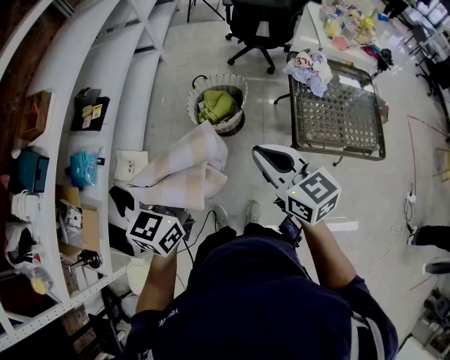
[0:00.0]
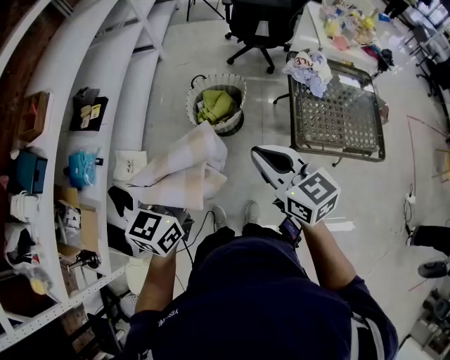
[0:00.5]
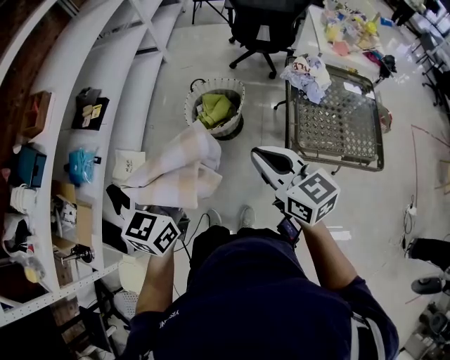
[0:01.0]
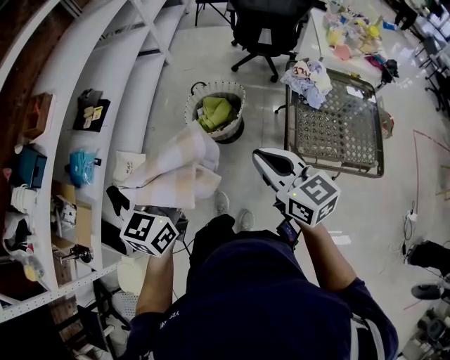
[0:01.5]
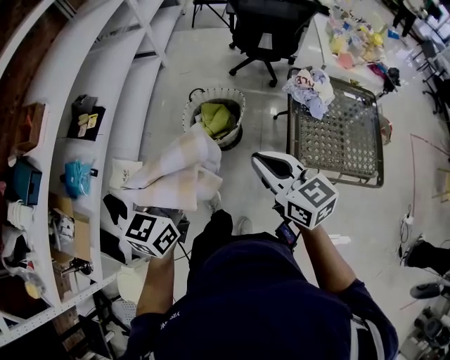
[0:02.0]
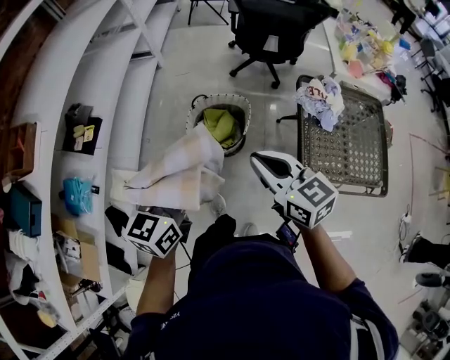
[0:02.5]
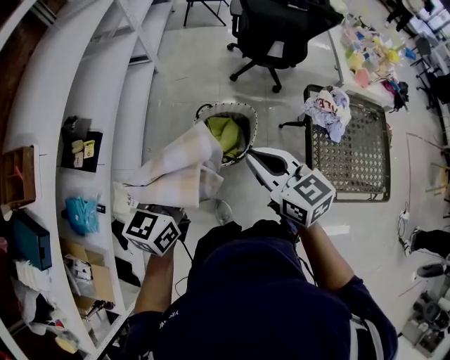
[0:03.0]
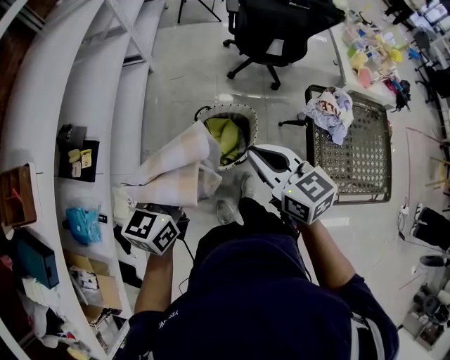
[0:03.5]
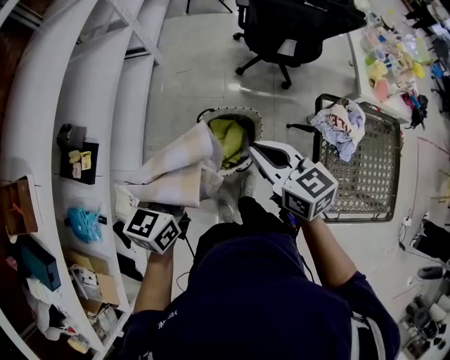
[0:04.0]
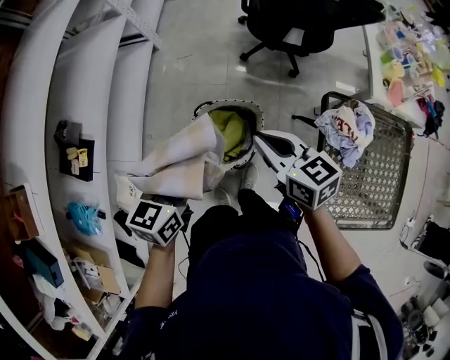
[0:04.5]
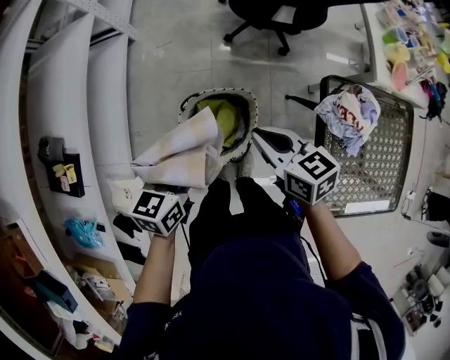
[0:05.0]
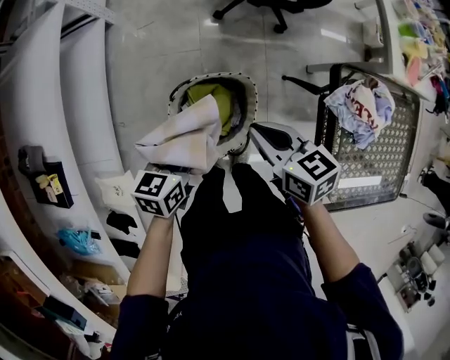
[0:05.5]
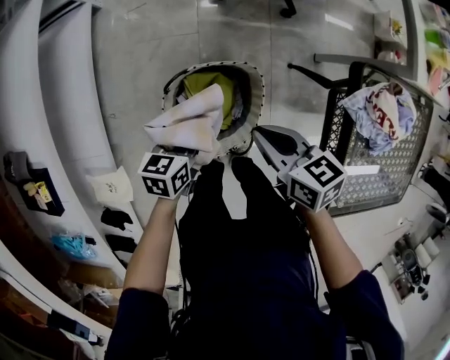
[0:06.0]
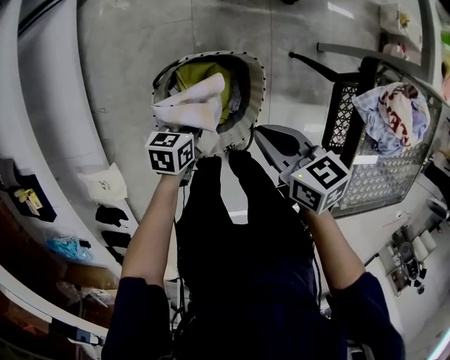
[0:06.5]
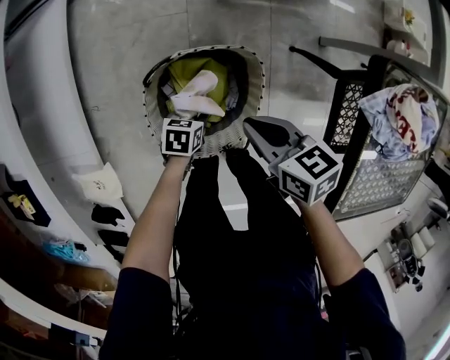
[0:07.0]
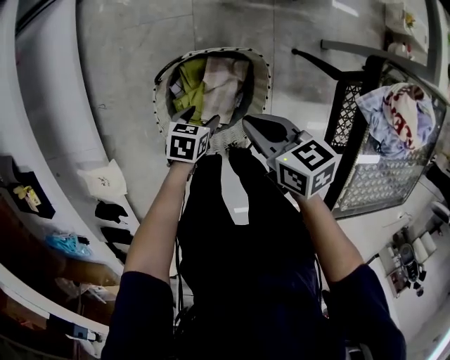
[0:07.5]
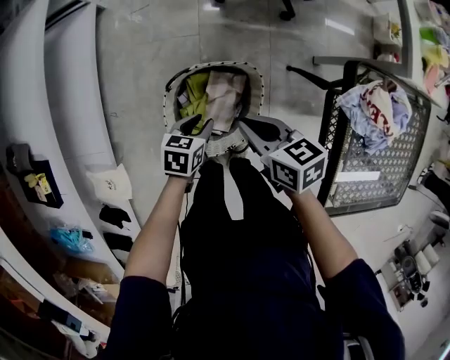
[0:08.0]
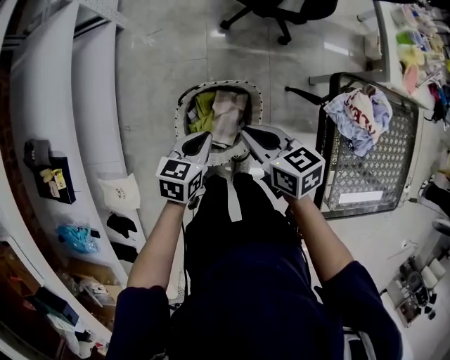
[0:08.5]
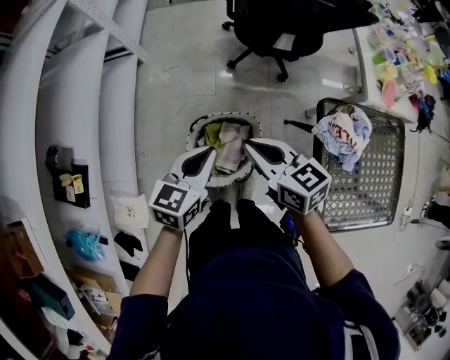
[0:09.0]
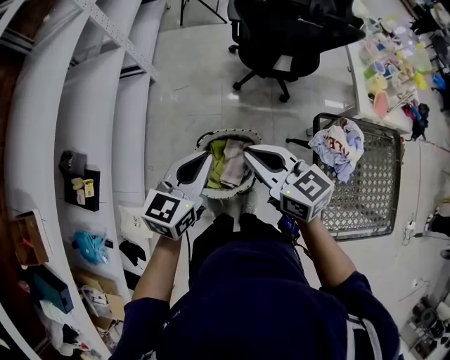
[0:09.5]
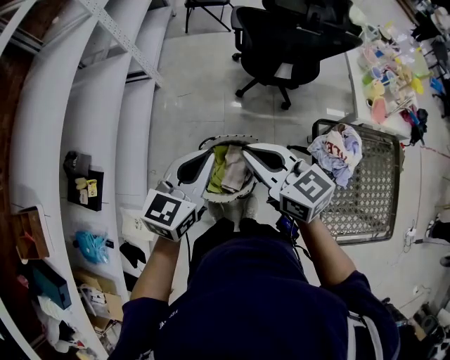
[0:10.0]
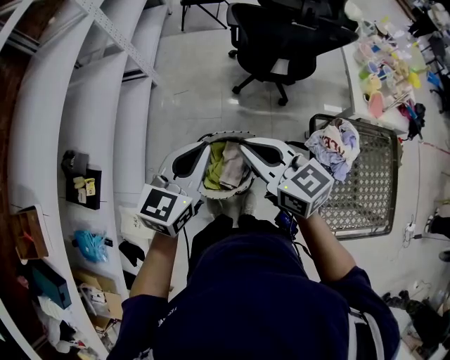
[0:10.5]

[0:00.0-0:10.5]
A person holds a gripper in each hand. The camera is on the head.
0:00.0 to 0:02.0: The left gripper is displaced forward by roughly 10 cm. Meanwhile the right gripper shifts about 10 cm forward and to the right.
0:02.0 to 0:04.0: The grippers both shift forward by approximately 35 cm.
0:04.0 to 0:06.5: The grippers both shift downward by roughly 40 cm. The right gripper rotates approximately 30 degrees; the left gripper turns by about 40 degrees.
0:06.5 to 0:08.5: The left gripper shifts about 20 cm upward, and opens and closes again, while the right gripper is displaced upward by some 10 cm.
0:08.5 to 0:10.5: The grippers both shift upward by roughly 30 cm. The left gripper rotates some 30 degrees. The right gripper changes its angle by roughly 30 degrees.

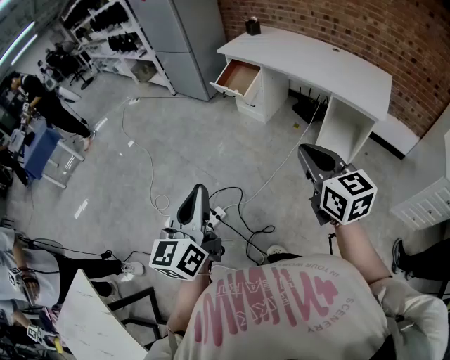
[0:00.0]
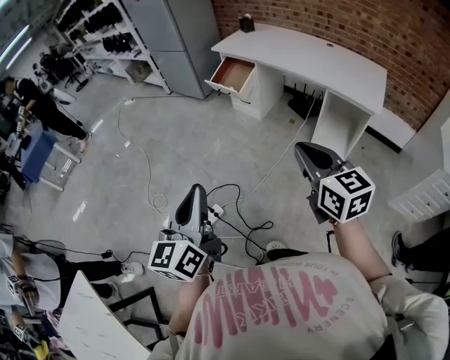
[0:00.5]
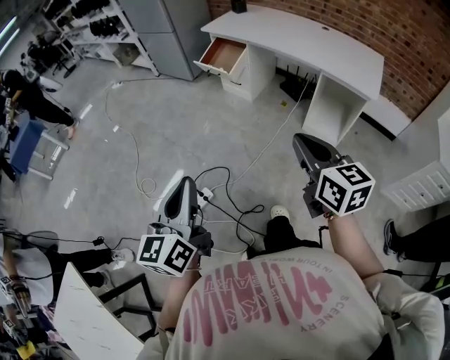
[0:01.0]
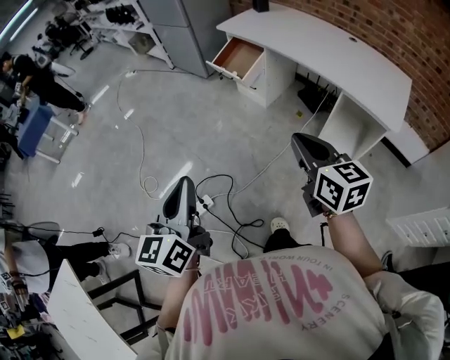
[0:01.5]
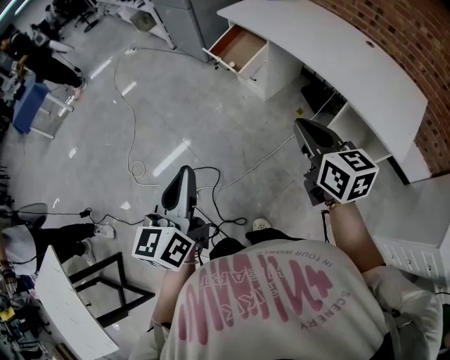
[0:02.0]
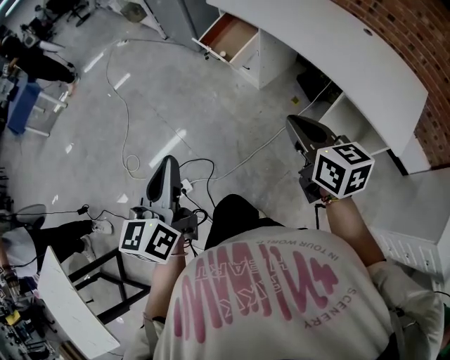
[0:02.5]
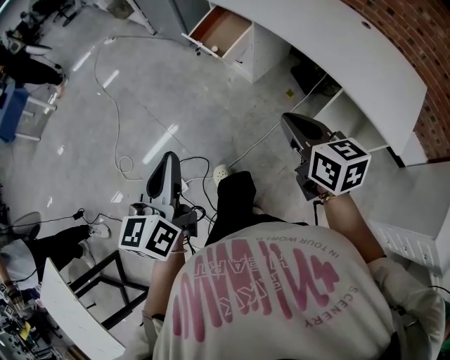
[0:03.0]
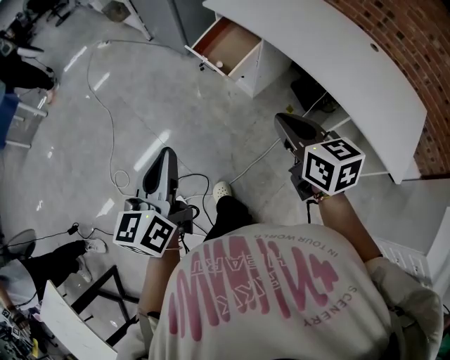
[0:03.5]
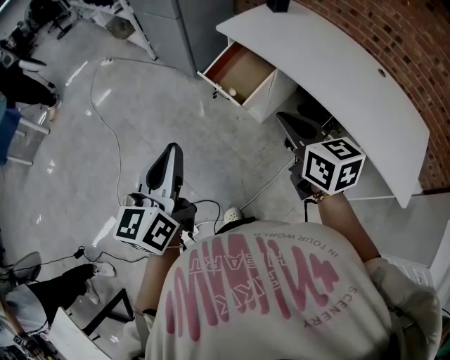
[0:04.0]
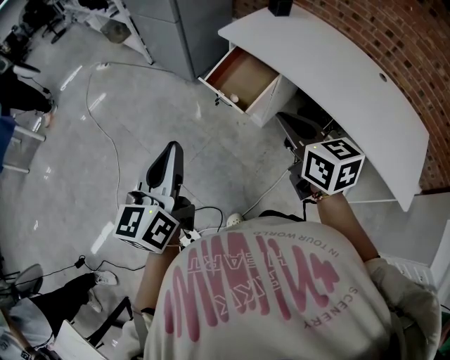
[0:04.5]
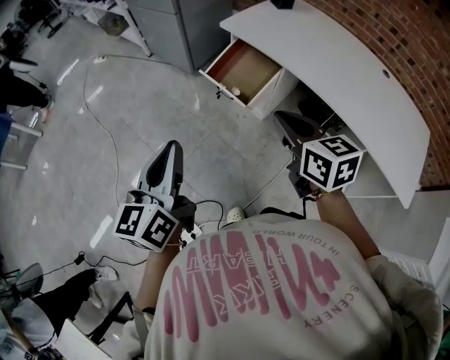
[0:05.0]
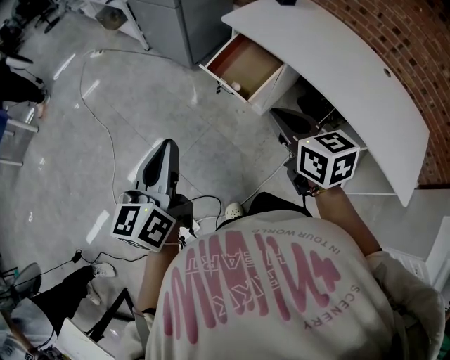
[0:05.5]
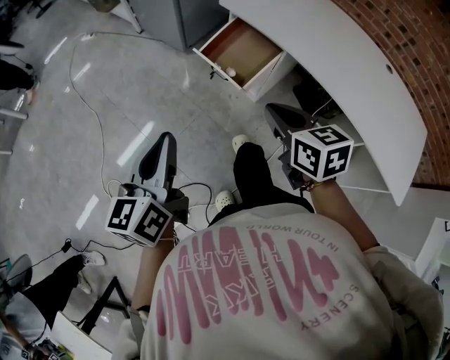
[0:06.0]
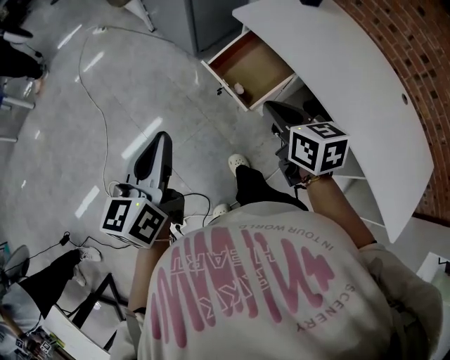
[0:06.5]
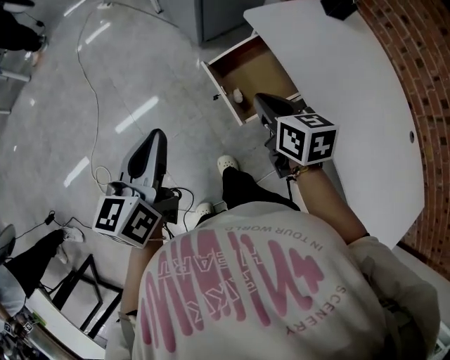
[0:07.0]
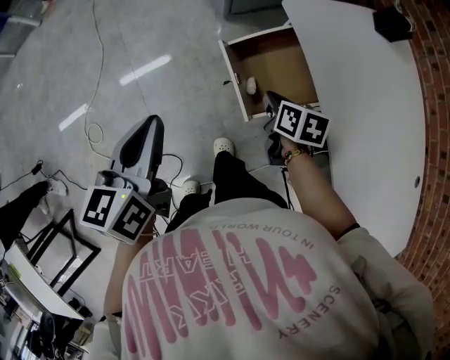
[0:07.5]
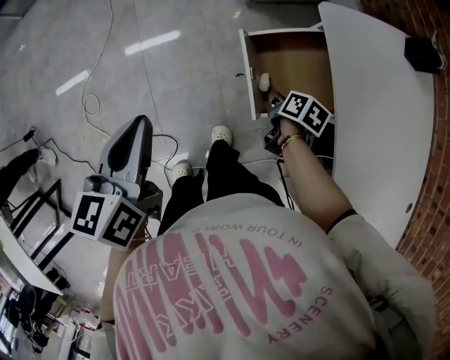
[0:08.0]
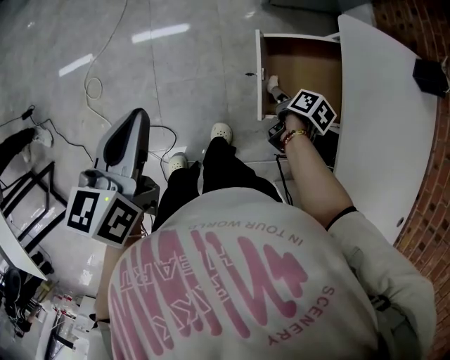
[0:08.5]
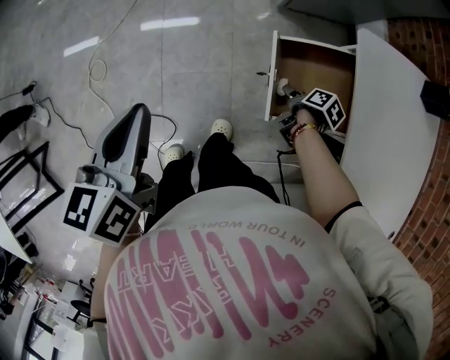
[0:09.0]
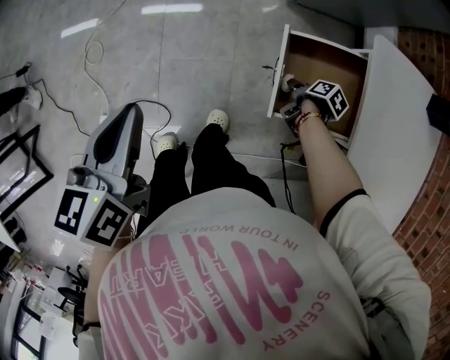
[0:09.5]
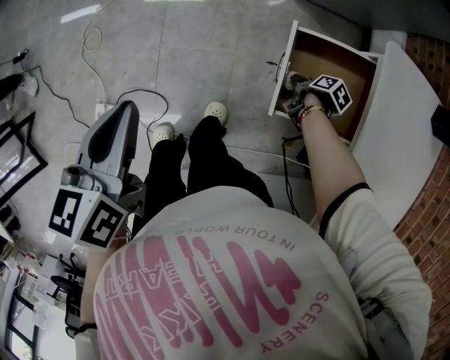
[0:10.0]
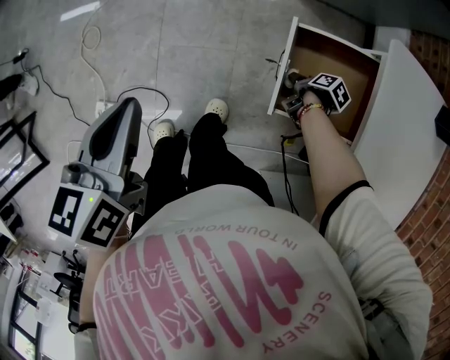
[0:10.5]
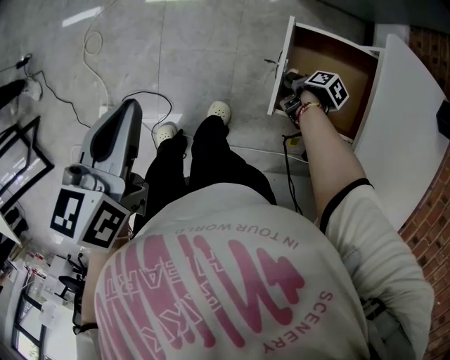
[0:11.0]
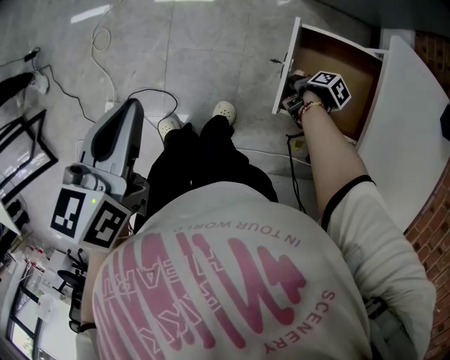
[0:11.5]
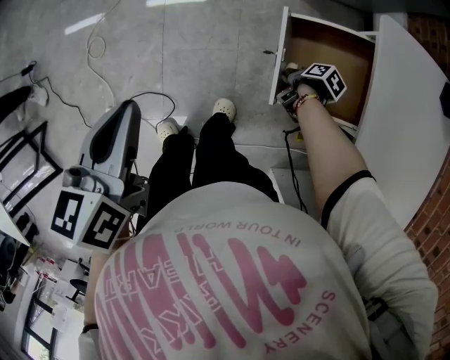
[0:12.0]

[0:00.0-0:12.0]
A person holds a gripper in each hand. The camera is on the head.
0:00.0 to 0:02.0: Both grippers move forward and to the right, approximately 25 cm.
0:02.0 to 0:04.0: Both grippers travel together forward, roughly 30 cm.
0:04.0 to 0:06.0: The left gripper goes approximately 10 cm downward and forward. The right gripper moves downward, forward and to the left, some 10 cm.
0:06.0 to 0:08.0: The left gripper changes place by roughly 20 cm, and turns by roughly 40 degrees, while the right gripper is displaced downward by roughly 30 cm, and rotates some 40 degrees.
0:08.0 to 0:10.0: The right gripper travels downward by approximately 10 cm, and opens up. Meanwhile the left gripper shifts some 10 cm to the left.
0:10.0 to 0:12.0: The right gripper closes.

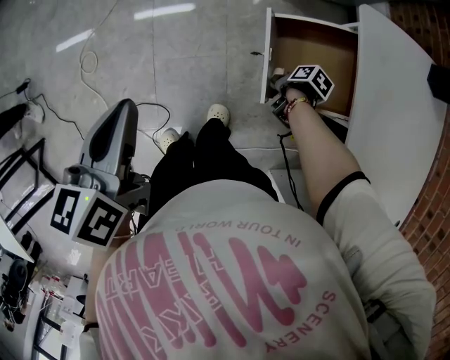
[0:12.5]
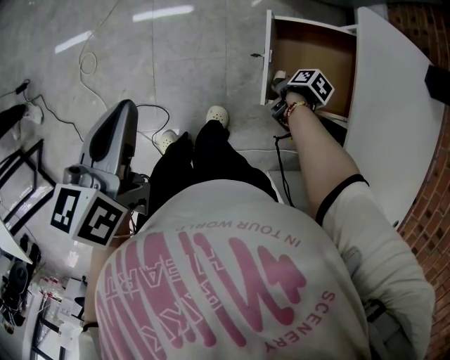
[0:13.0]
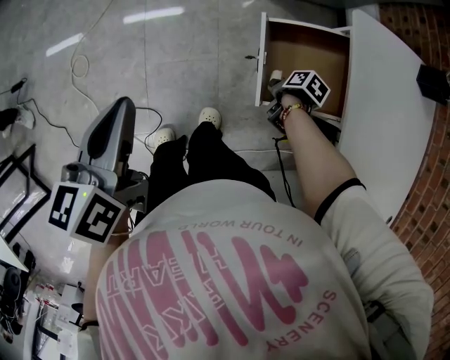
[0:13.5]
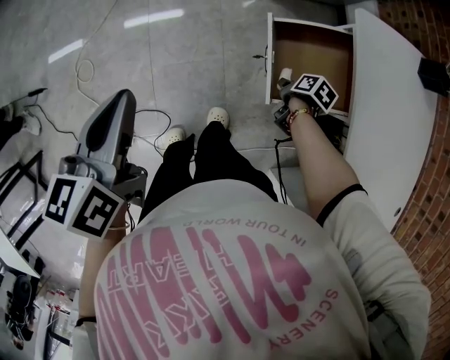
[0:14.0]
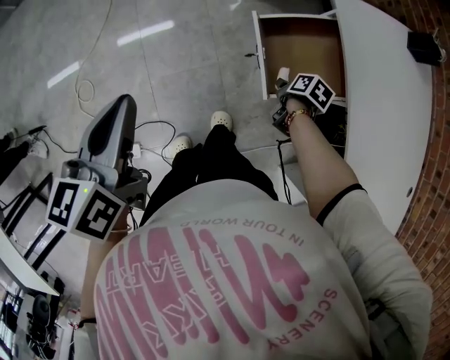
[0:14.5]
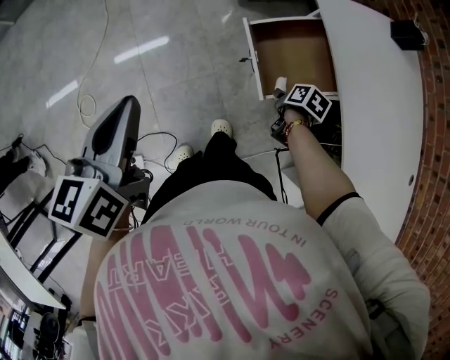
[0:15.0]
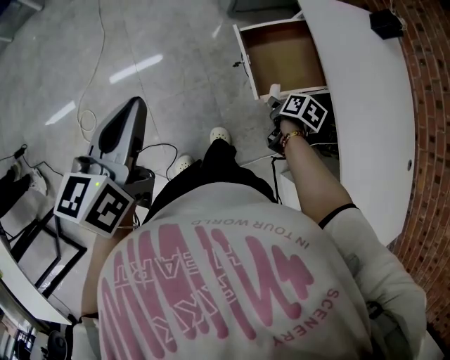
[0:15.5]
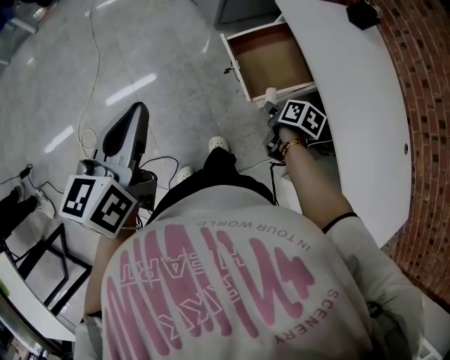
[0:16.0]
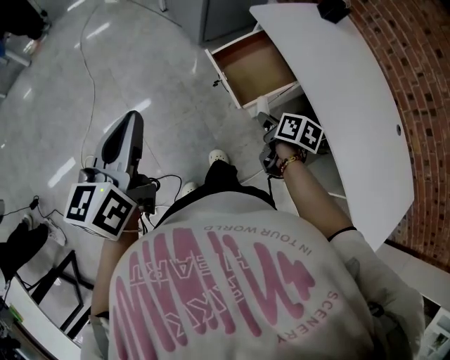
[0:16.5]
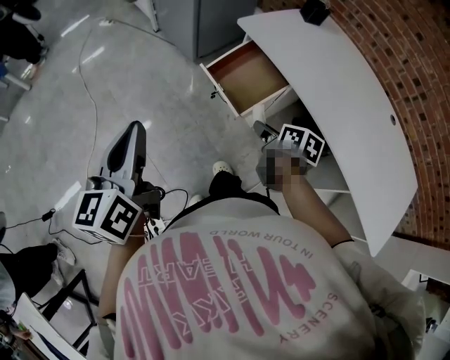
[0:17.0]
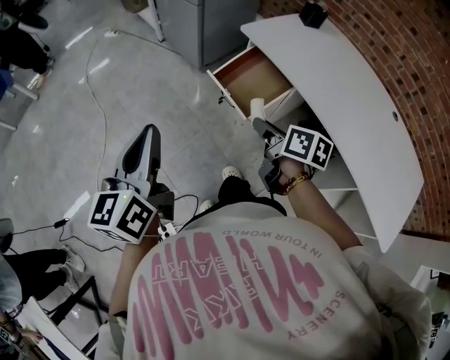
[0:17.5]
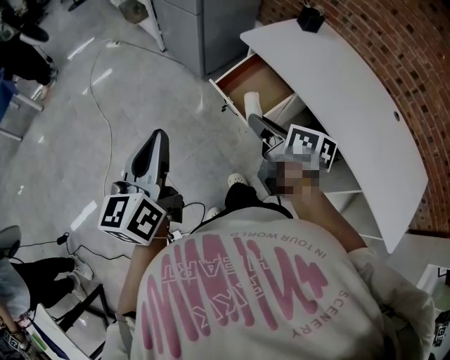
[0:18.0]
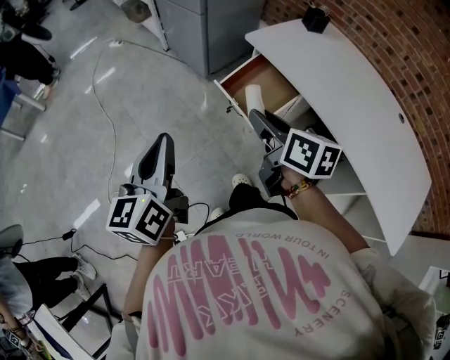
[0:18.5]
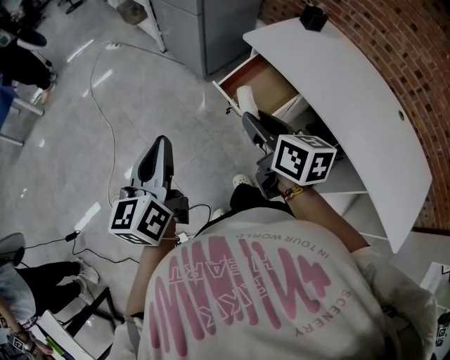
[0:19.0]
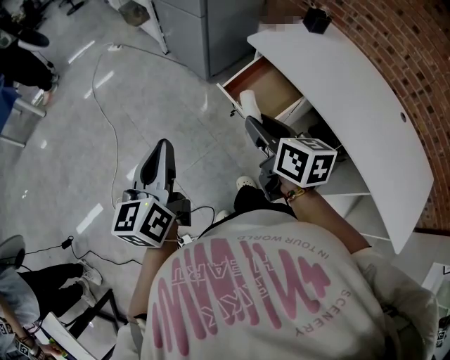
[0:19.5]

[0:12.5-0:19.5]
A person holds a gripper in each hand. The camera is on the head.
0:12.5 to 0:14.5: The right gripper is displaced upward by some 5 cm.
0:14.5 to 0:16.0: The left gripper heads upward and backward, covering about 10 cm; the right gripper shifts about 15 cm upward and backward.
0:16.0 to 0:17.5: The left gripper goes roughly 5 cm upward. The right gripper travels upward, backward and to the left by approximately 20 cm, and swivels roughly 30 degrees.
0:17.5 to 0:19.5: The right gripper moves upward and to the left, roughly 10 cm, and swivels about 20 degrees.
